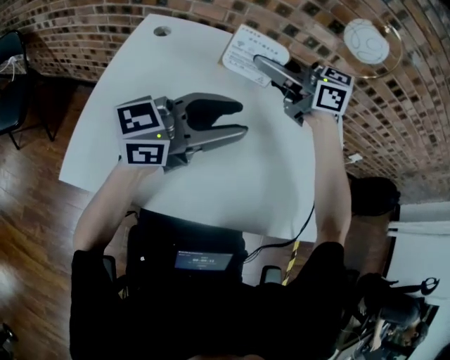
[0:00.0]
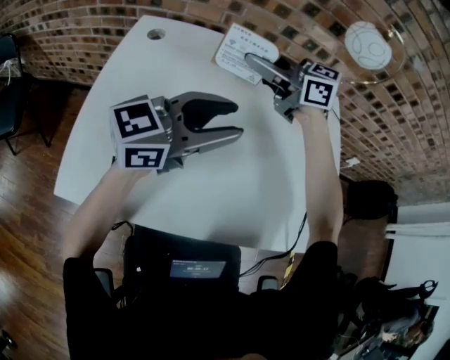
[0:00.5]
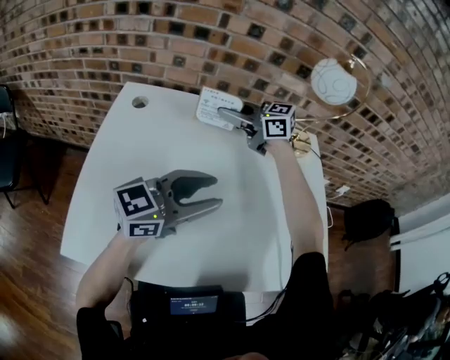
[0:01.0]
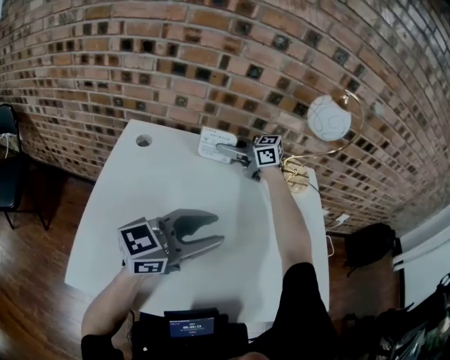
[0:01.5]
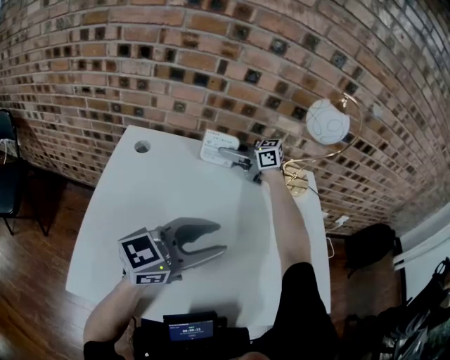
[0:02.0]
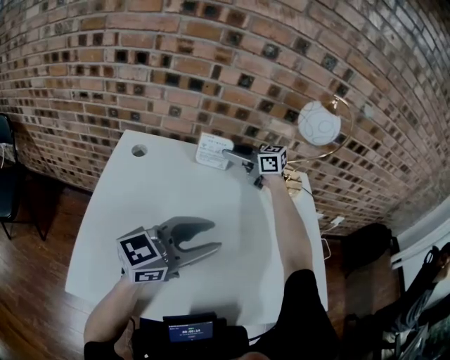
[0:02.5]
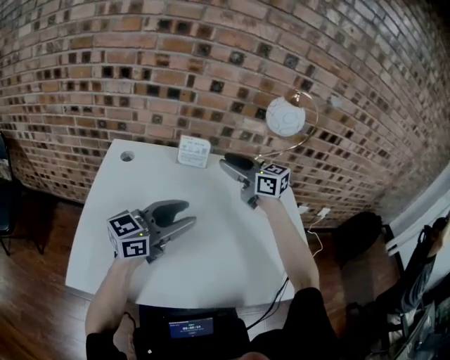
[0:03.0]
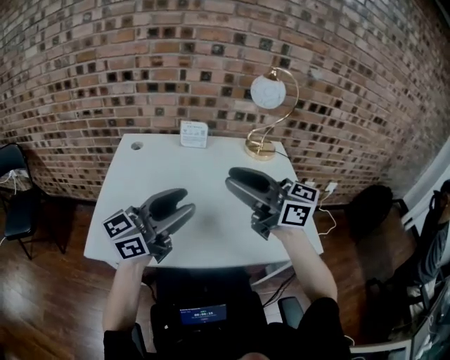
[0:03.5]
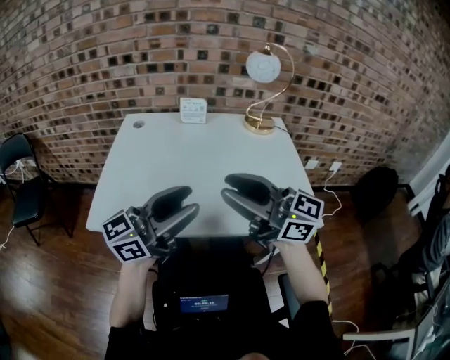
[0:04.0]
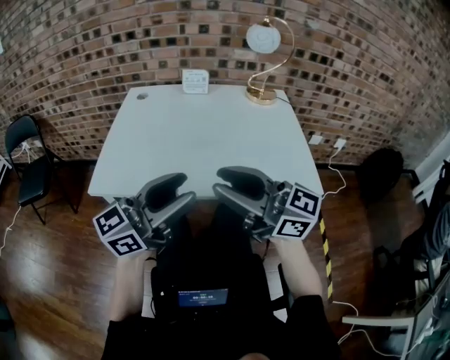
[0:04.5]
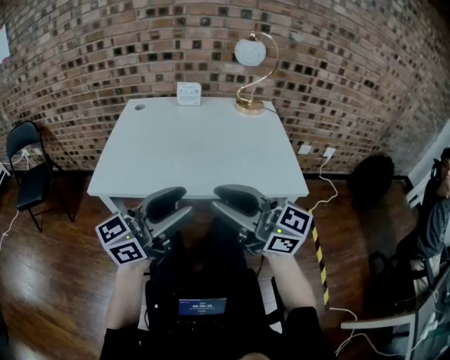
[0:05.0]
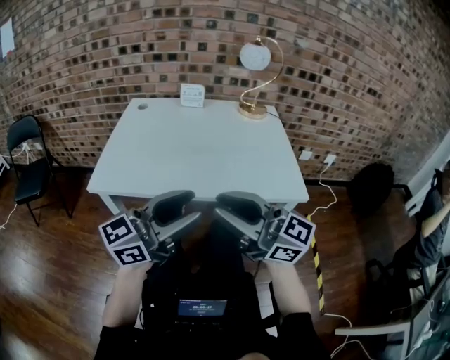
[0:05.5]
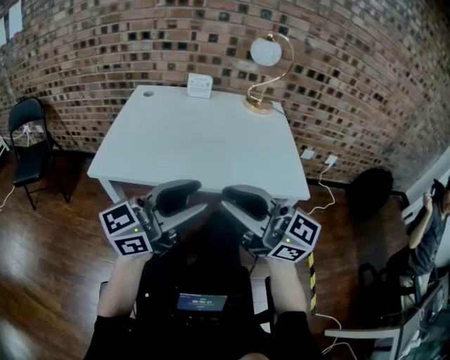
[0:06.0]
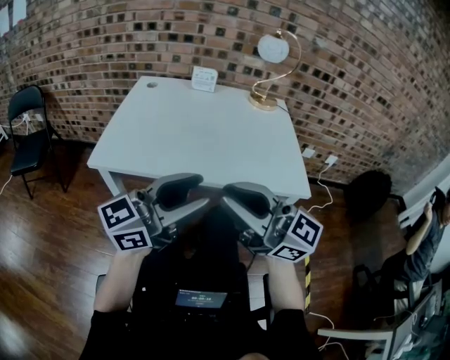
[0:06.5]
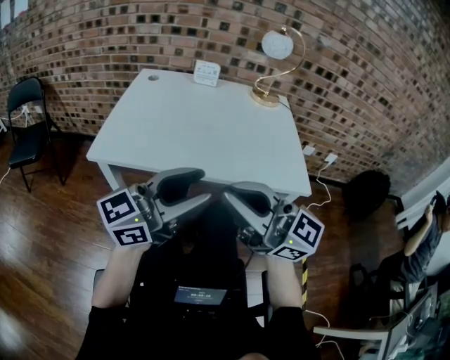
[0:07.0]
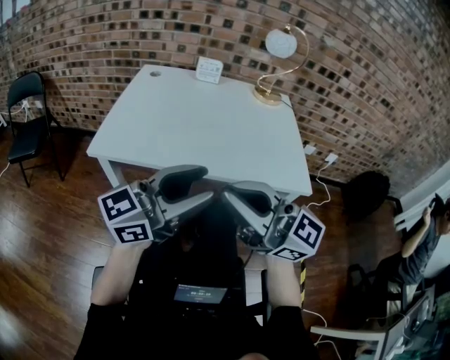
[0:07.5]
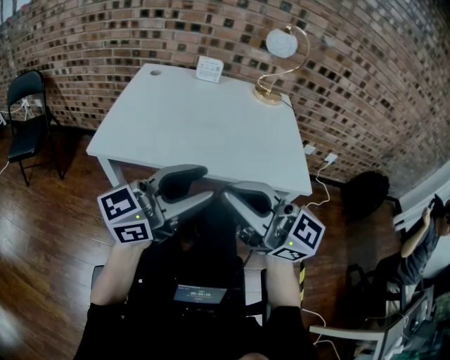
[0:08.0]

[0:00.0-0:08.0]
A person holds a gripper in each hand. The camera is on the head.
0:00.0 to 0:02.0: The right gripper changes place by roughly 25 cm.
0:02.0 to 0:04.0: The right gripper moves about 50 cm, swivels roughly 30 degrees, and opens. The left gripper shifts by approximately 20 cm.
0:04.0 to 0:06.0: The right gripper changes place by approximately 15 cm. The left gripper shifts by approximately 15 cm.
0:06.0 to 0:08.0: The right gripper closes.

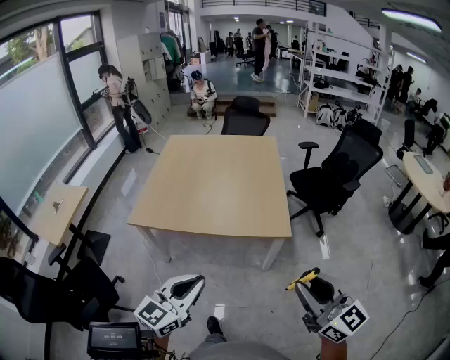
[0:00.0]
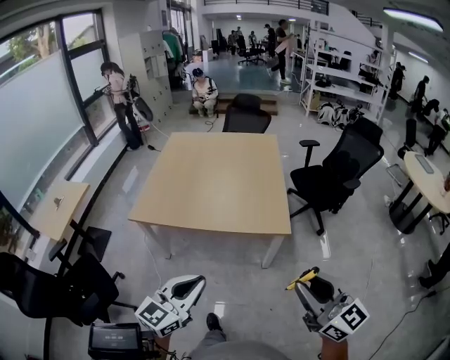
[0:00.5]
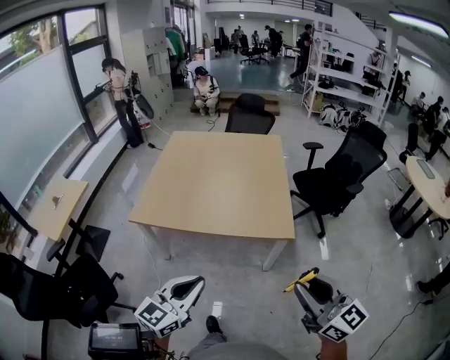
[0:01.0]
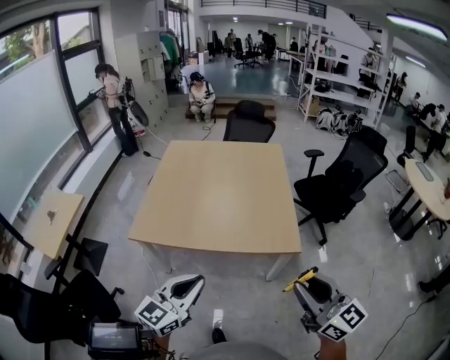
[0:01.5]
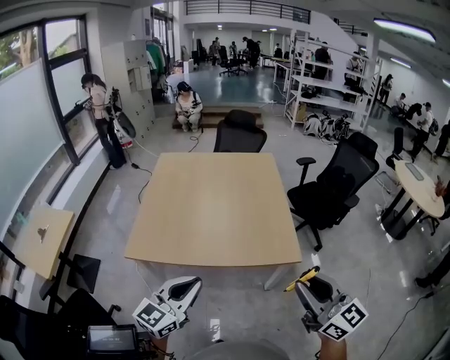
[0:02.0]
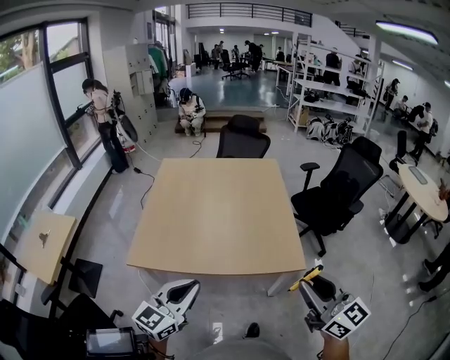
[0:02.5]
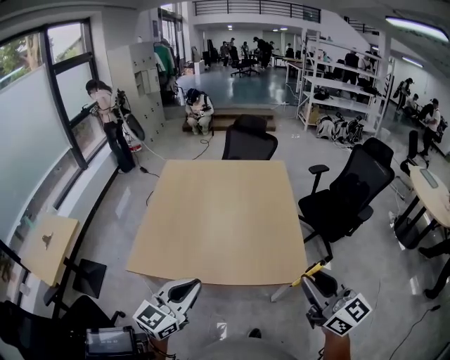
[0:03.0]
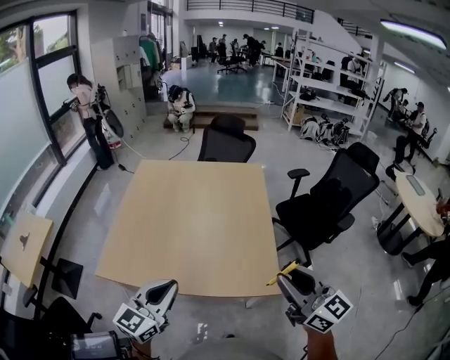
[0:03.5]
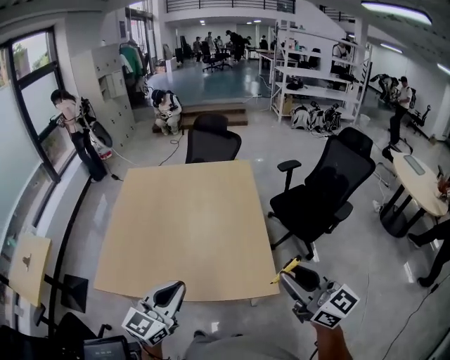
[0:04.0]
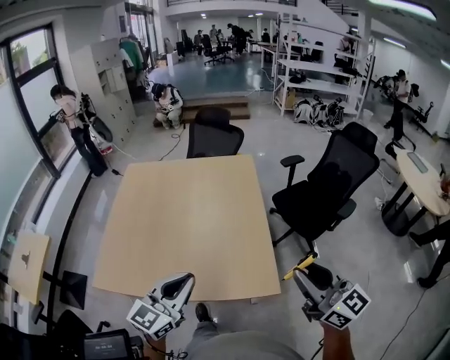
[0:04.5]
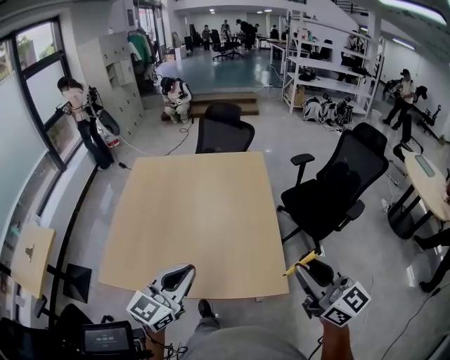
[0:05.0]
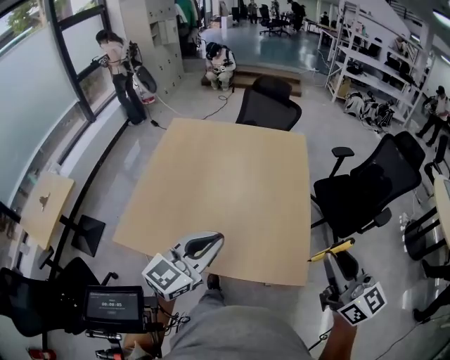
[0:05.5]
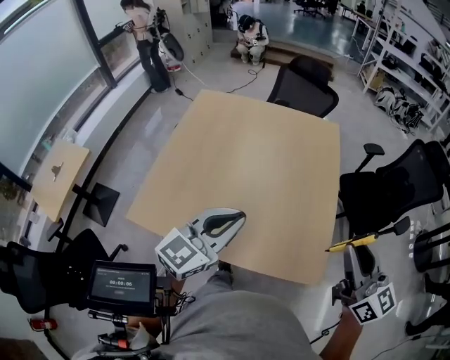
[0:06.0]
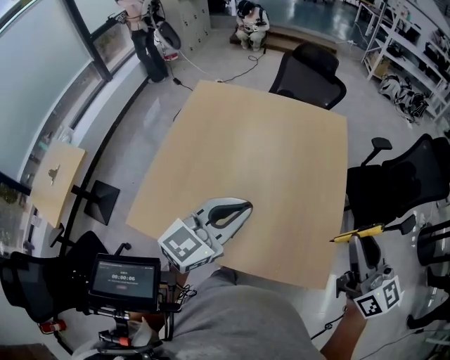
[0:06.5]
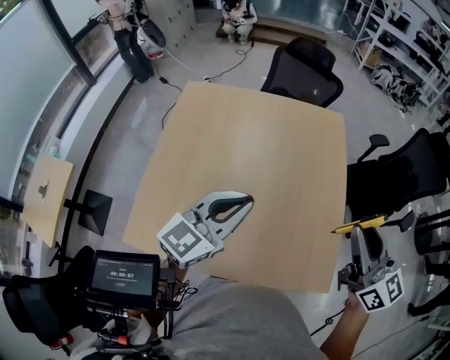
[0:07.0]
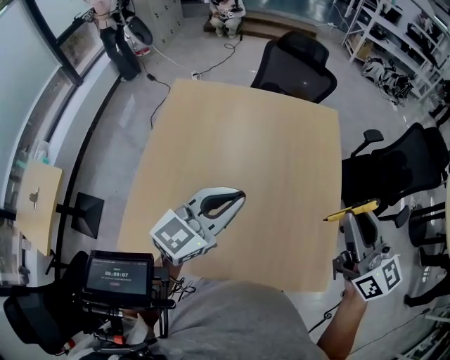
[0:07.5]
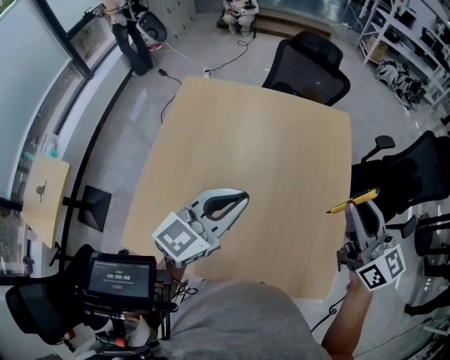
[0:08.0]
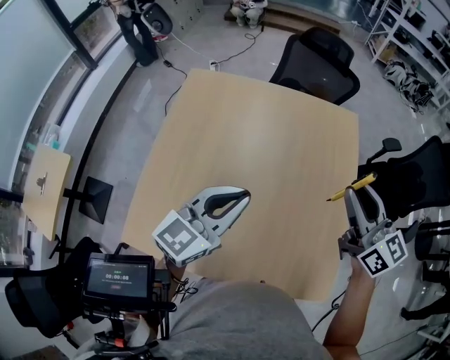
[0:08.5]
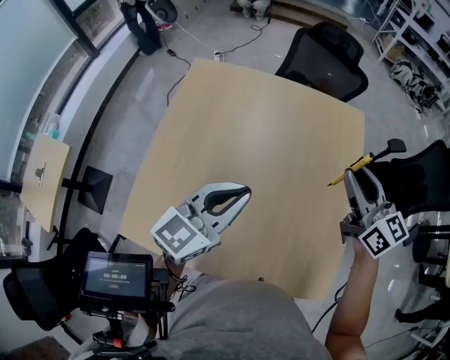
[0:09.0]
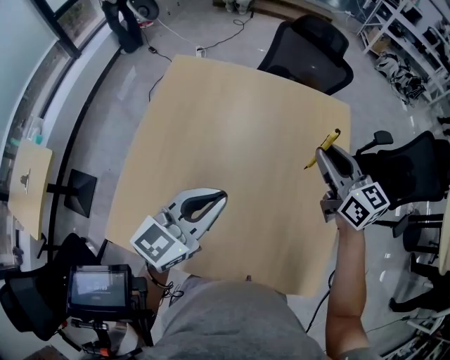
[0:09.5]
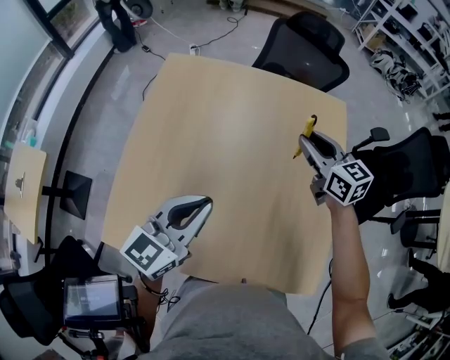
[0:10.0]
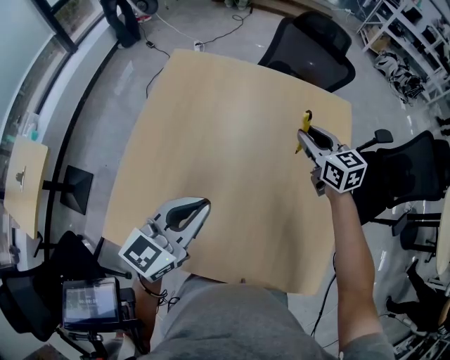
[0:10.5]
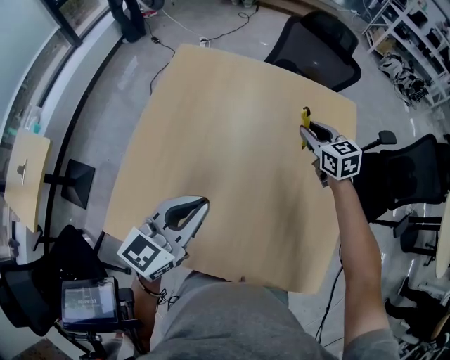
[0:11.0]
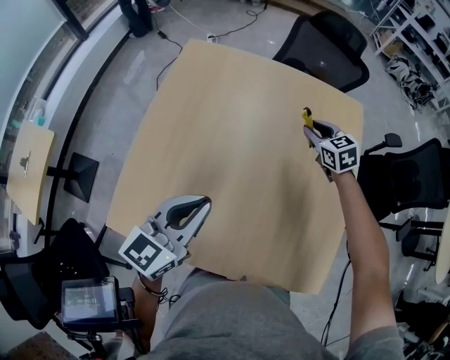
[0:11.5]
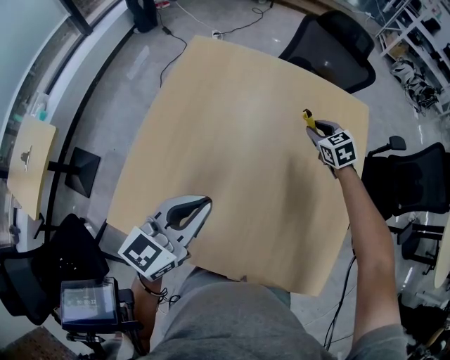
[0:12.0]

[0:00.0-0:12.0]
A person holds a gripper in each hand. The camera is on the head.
0:00.0 to 0:02.0: Both grippers move forward and to the left, about 20 cm.
0:02.0 to 0:04.0: The grippers both shift forward and to the right by about 25 cm.
0:04.0 to 0:06.0: The two grippers go some 15 cm forward and to the left.
0:06.0 to 0:08.0: Both grippers move forward and to the left, some 25 cm.
0:08.0 to 0:10.0: The right gripper is displaced forward and downward by roughly 25 cm. The left gripper moves downward, approximately 5 cm.
0:10.0 to 0:12.0: The left gripper changes place by some 5 cm. The right gripper travels downward and forward by some 20 cm, and swivels some 40 degrees.

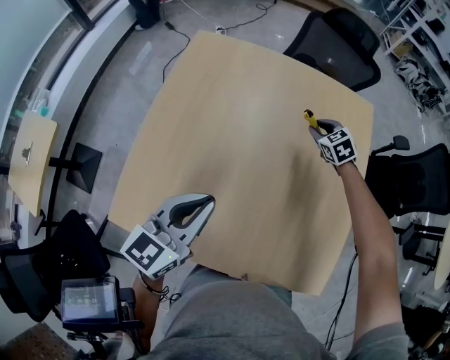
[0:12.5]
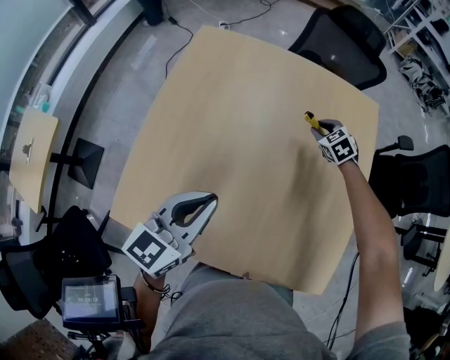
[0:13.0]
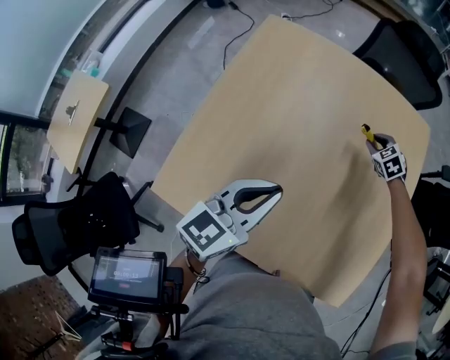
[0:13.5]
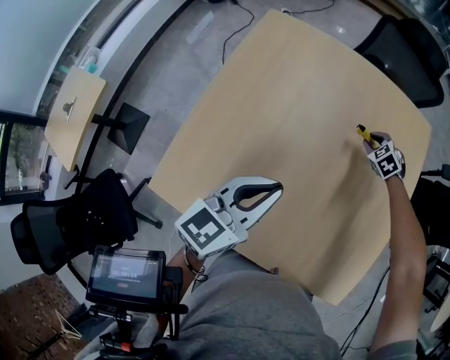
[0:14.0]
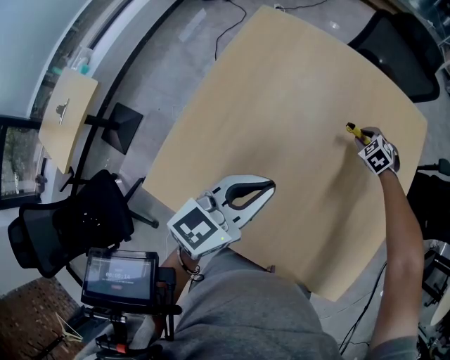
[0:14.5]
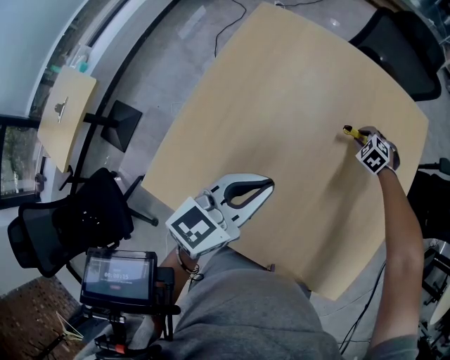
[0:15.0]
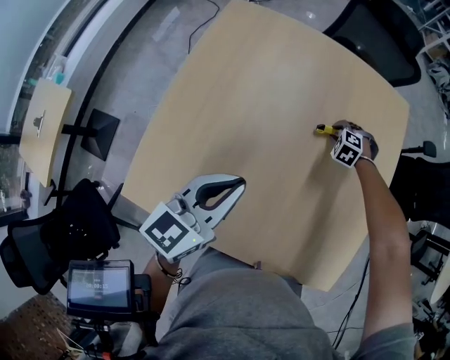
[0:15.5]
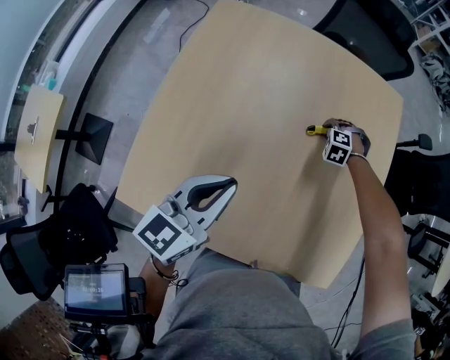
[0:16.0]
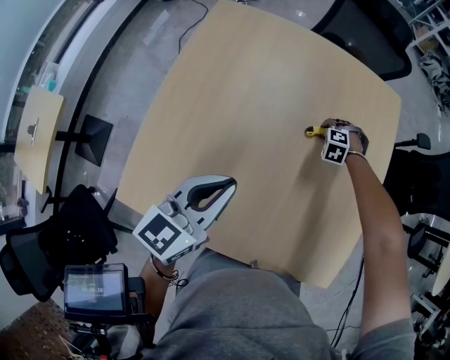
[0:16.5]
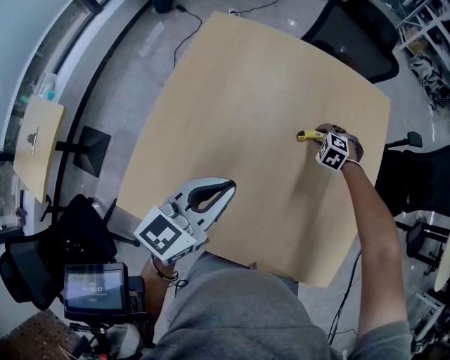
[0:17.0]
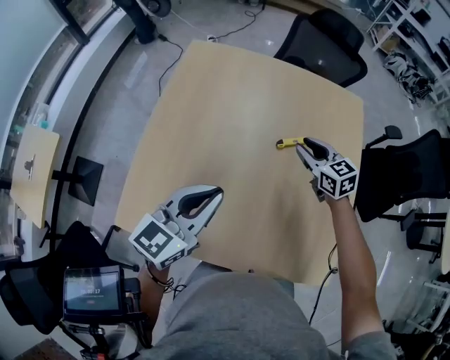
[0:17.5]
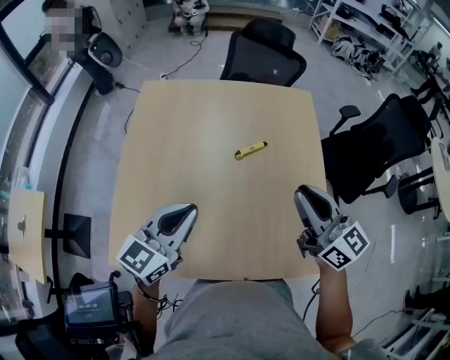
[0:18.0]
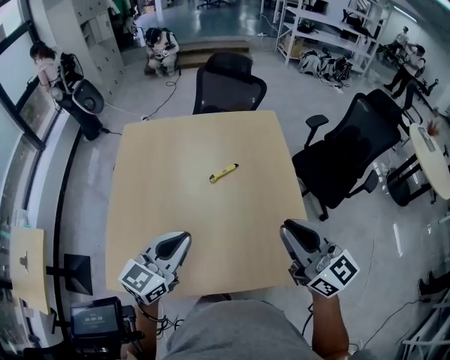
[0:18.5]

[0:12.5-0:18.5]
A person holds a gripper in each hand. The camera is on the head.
0:12.5 to 0:14.5: The right gripper moves downward, about 10 cm, and turns by roughly 30 degrees.
0:14.5 to 0:16.5: The right gripper moves about 5 cm, and turns by approximately 30 degrees.
0:16.5 to 0:18.5: The left gripper changes place by about 20 cm, and swivels roughly 20 degrees. The right gripper goes approximately 50 cm upward, and tilts its fingers some 80 degrees upward.

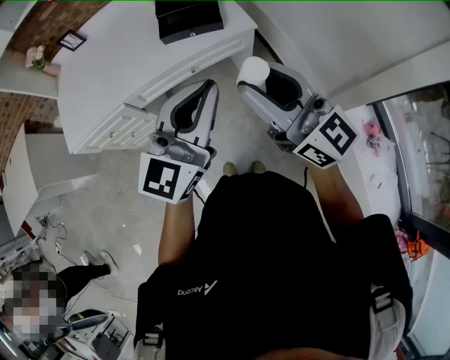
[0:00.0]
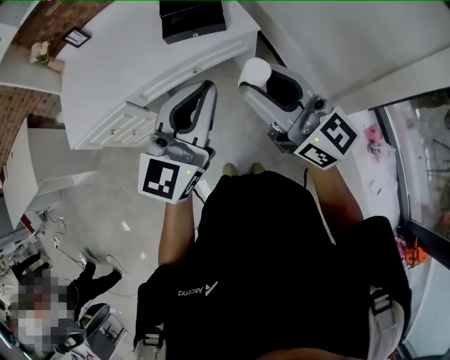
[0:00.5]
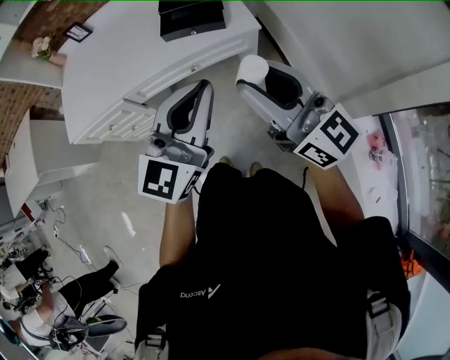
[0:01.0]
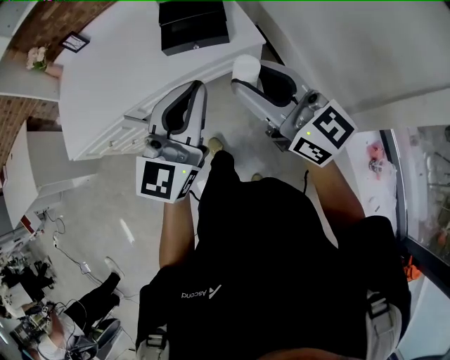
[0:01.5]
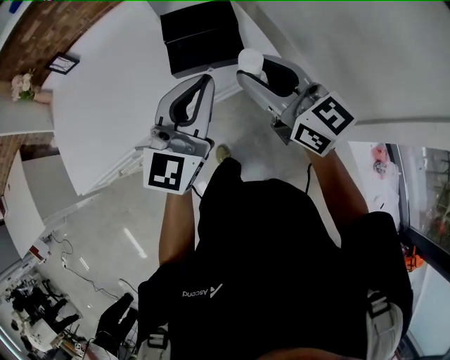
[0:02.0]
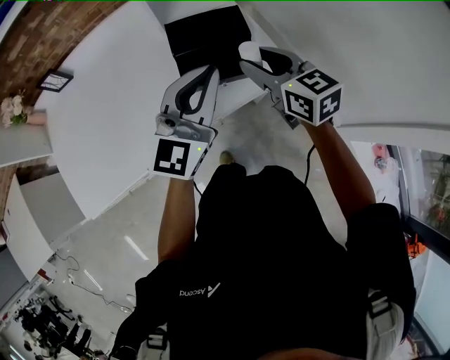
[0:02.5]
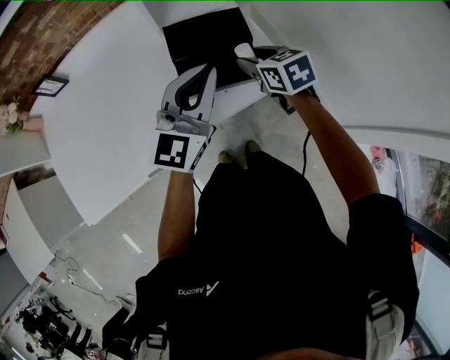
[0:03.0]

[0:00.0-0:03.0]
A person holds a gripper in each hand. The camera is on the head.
0:00.0 to 0:01.5: The two grippers go about 10 cm forward.
0:01.5 to 0:03.0: The right gripper is displaced forward and downward by some 40 cm, and points its fingers roughly 50 degrees further downward; the left gripper heads forward, covering approximately 30 cm.
